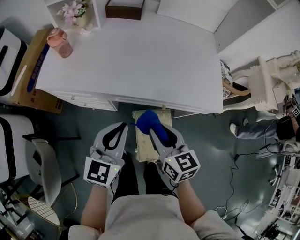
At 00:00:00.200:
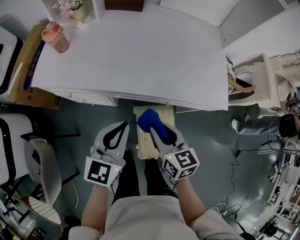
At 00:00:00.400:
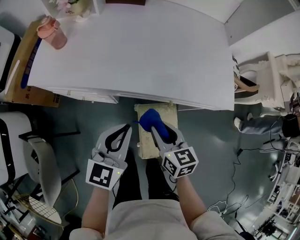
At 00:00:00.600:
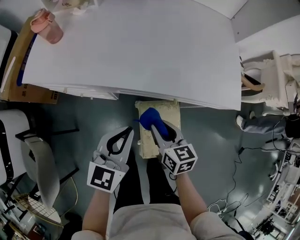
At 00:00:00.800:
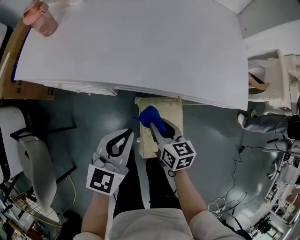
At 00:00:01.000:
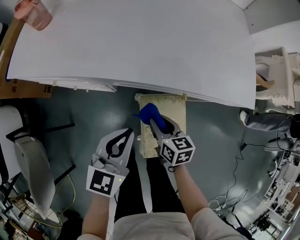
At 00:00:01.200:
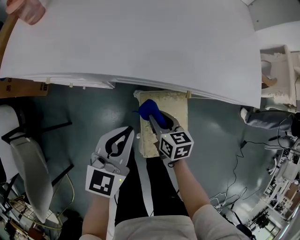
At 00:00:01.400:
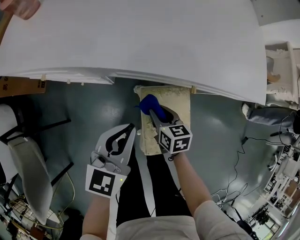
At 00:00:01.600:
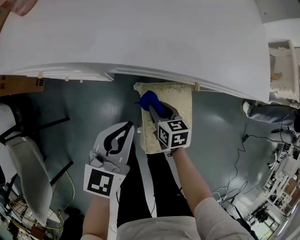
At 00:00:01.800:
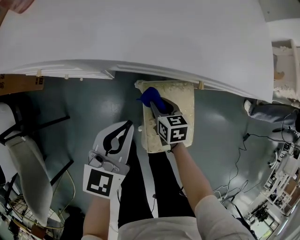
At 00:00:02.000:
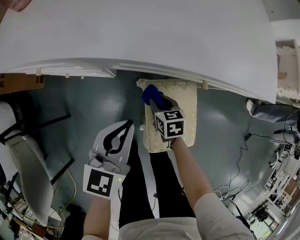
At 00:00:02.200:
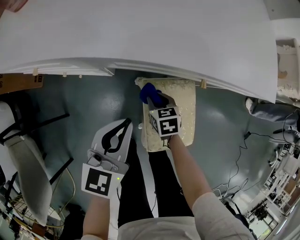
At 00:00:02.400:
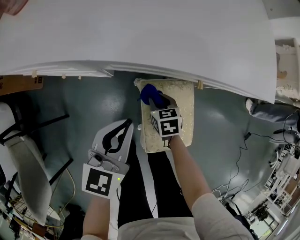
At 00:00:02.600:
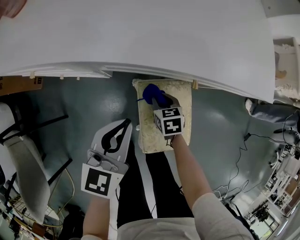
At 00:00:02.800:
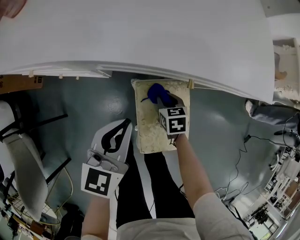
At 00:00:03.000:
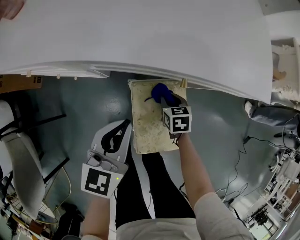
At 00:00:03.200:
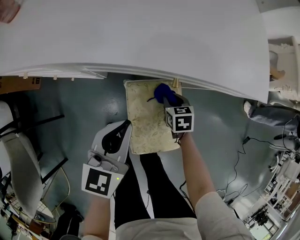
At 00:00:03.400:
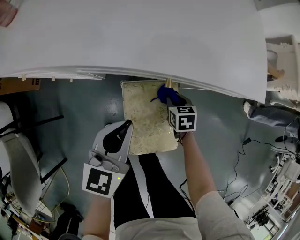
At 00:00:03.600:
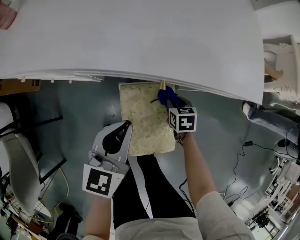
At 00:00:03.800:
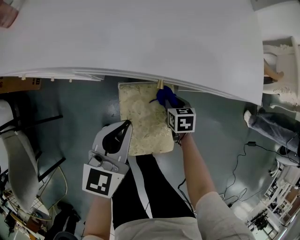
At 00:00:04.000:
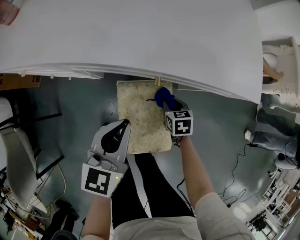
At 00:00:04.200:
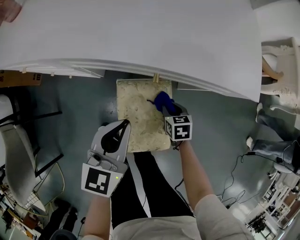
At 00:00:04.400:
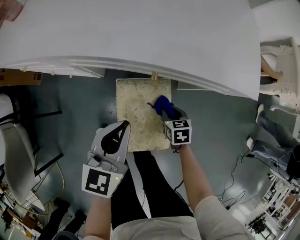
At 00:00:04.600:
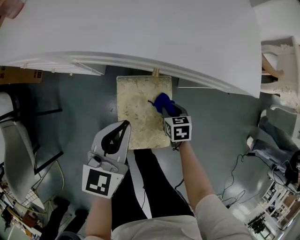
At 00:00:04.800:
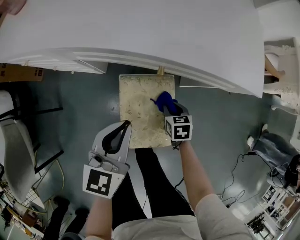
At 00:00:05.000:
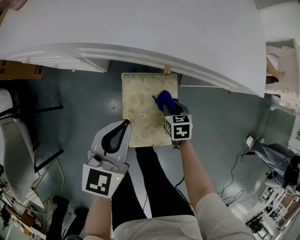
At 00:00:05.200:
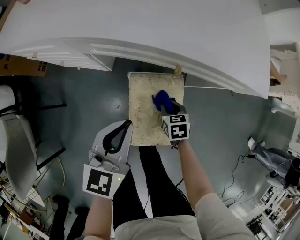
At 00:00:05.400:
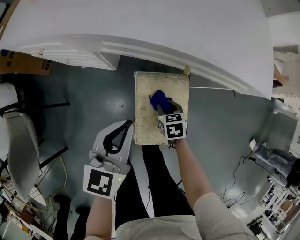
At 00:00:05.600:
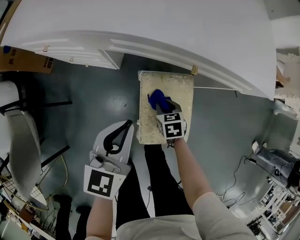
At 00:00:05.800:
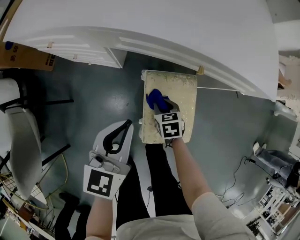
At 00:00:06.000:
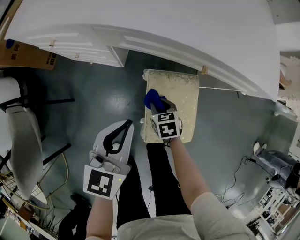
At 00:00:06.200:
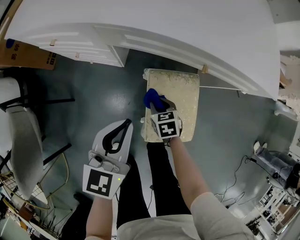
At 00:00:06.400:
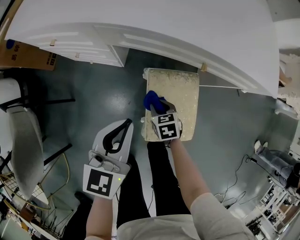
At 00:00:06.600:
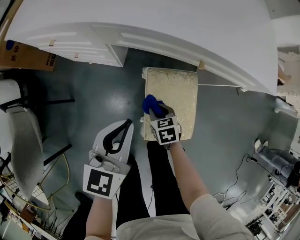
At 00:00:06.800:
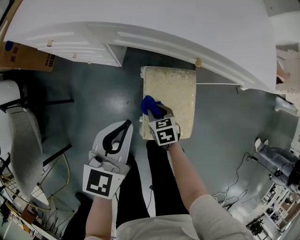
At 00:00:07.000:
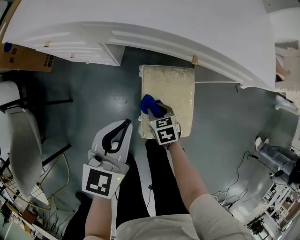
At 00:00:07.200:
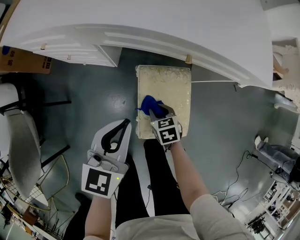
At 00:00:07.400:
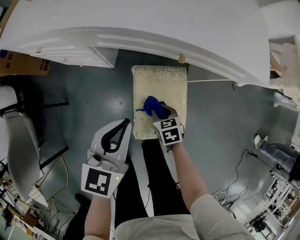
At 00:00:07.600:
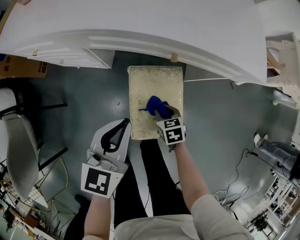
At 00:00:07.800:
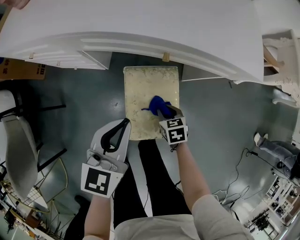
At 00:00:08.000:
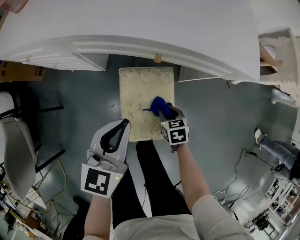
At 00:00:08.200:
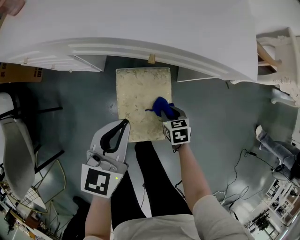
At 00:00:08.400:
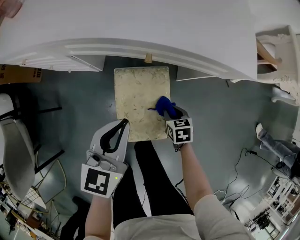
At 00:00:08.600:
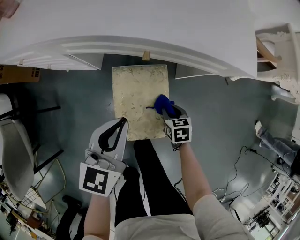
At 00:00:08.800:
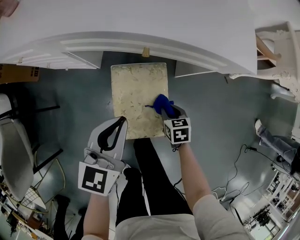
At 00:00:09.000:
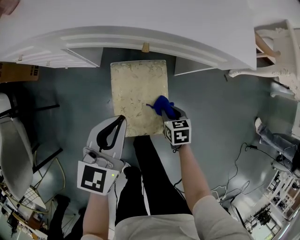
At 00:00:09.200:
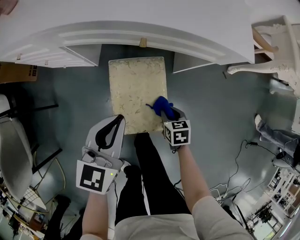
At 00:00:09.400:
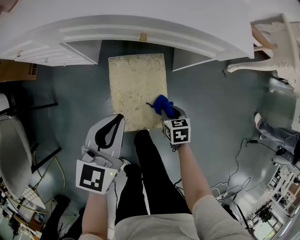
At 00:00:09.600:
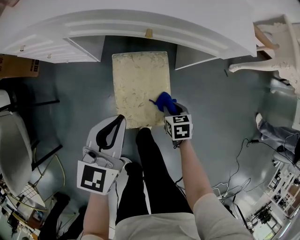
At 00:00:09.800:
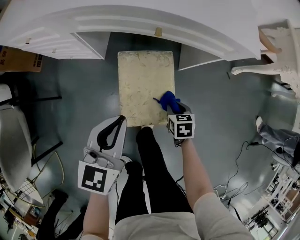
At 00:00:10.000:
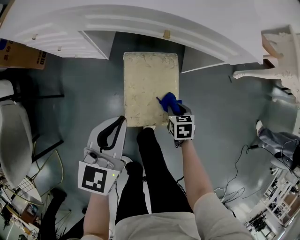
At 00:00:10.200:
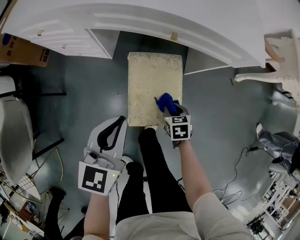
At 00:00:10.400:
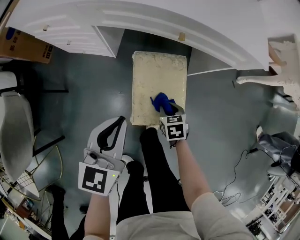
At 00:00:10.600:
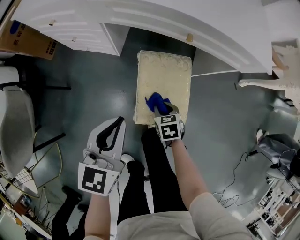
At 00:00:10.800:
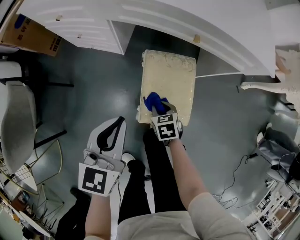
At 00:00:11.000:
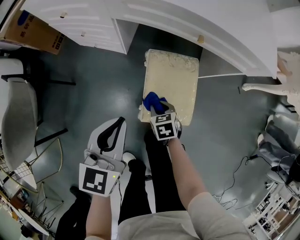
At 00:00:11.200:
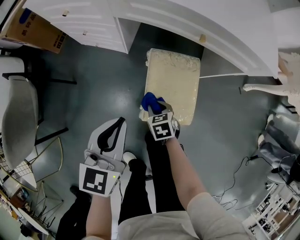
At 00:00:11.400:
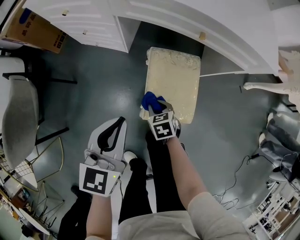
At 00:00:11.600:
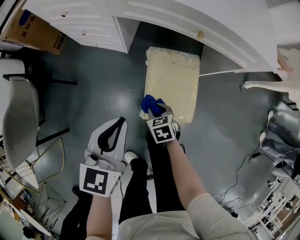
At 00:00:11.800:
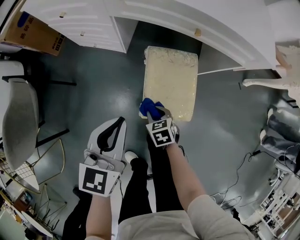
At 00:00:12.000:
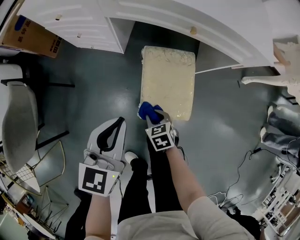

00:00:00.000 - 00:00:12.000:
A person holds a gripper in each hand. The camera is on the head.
00:00:00.000 - 00:00:01.600: The left gripper is displaced downward by some 25 cm; the right gripper travels downward by about 40 cm, and rotates roughly 20 degrees.
00:00:01.600 - 00:00:03.000: The left gripper heads to the right, covering approximately 5 cm, while the right gripper travels to the right and downward by some 10 cm.
00:00:03.000 - 00:00:04.400: The left gripper heads to the right, covering some 10 cm; the right gripper moves to the right and backward, about 10 cm.
00:00:04.400 - 00:00:06.000: The left gripper goes some 15 cm to the left. Meanwhile the right gripper shifts about 20 cm to the left.
00:00:06.000 - 00:00:07.600: The left gripper is displaced to the right by roughly 5 cm; the right gripper heads to the right and backward, covering some 10 cm.
00:00:07.600 - 00:00:09.000: The right gripper is displaced to the right by some 10 cm. The left gripper shifts about 5 cm to the right.
00:00:09.000 - 00:00:10.400: The left gripper is displaced to the left and backward by some 10 cm, while the right gripper is displaced to the left by about 10 cm.
00:00:10.400 - 00:00:12.000: The right gripper goes roughly 15 cm to the left and backward; the left gripper moves approximately 5 cm.

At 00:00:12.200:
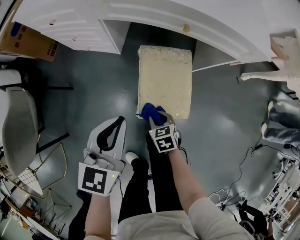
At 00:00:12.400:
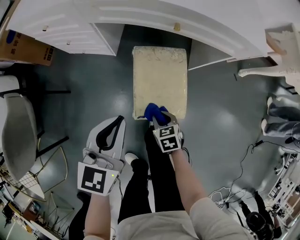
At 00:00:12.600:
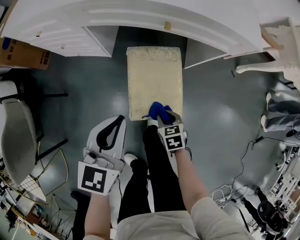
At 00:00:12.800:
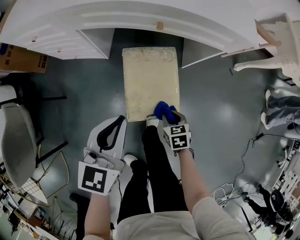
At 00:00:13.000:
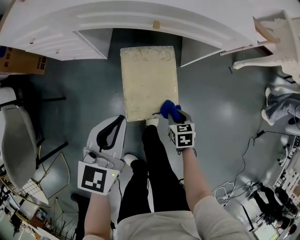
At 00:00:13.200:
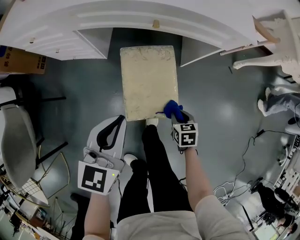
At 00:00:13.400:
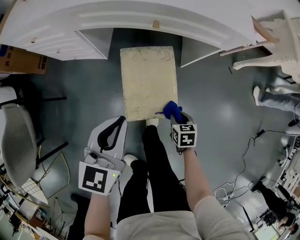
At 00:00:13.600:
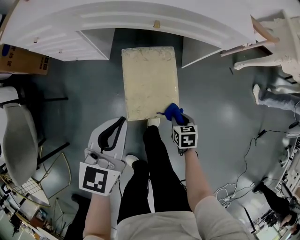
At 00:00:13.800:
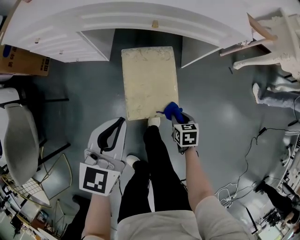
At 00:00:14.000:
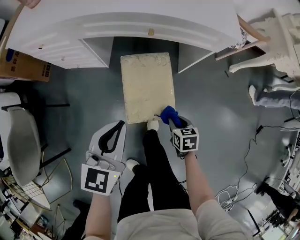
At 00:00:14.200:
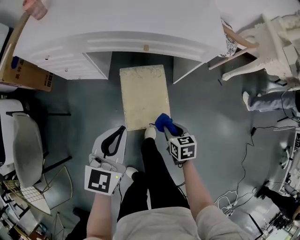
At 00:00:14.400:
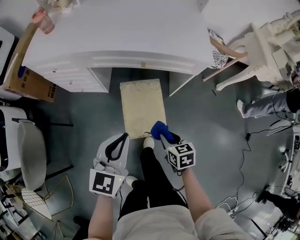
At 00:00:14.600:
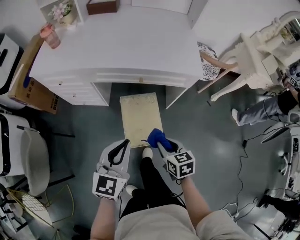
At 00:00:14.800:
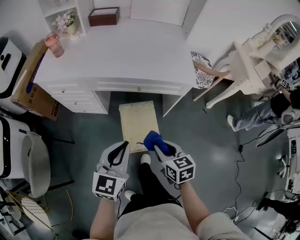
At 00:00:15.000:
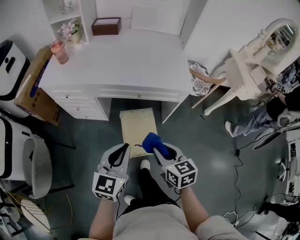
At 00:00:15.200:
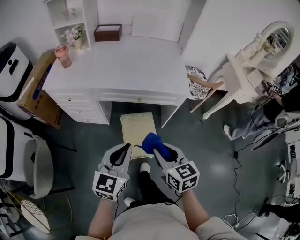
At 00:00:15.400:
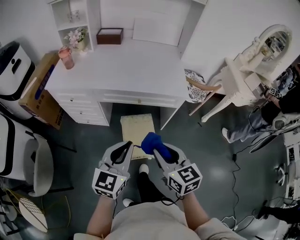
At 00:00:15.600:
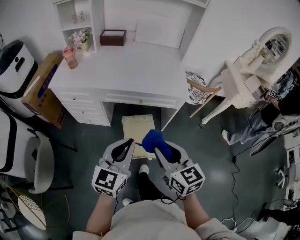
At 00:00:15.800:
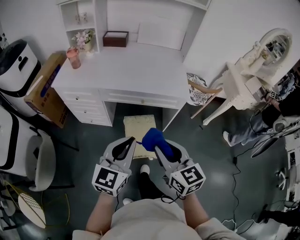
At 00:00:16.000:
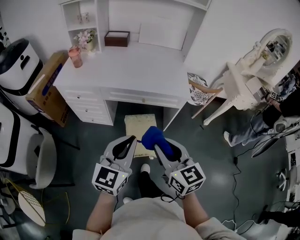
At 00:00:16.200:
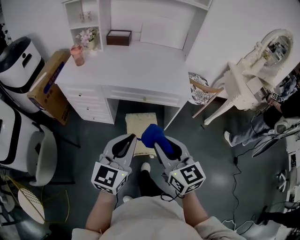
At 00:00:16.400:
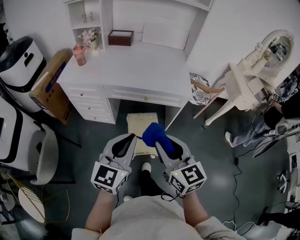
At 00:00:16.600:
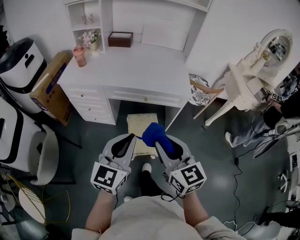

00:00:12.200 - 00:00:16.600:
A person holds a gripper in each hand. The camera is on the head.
00:00:12.200 - 00:00:13.600: The right gripper travels to the right by approximately 15 cm, and changes its angle by approximately 20 degrees. Meanwhile the left gripper travels to the right by roughly 5 cm.
00:00:13.600 - 00:00:15.200: The right gripper goes approximately 50 cm upward, and angles its fingers upward, by approximately 40 degrees. Meanwhile the left gripper travels upward by roughly 25 cm.
00:00:15.200 - 00:00:16.600: Both grippers travel together upward and backward, approximately 15 cm.

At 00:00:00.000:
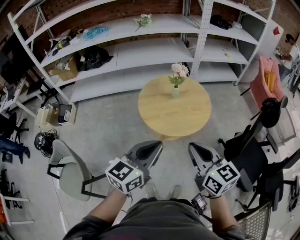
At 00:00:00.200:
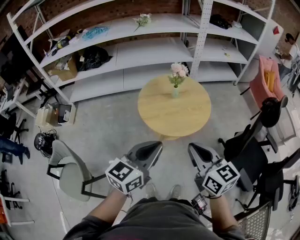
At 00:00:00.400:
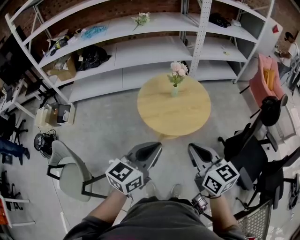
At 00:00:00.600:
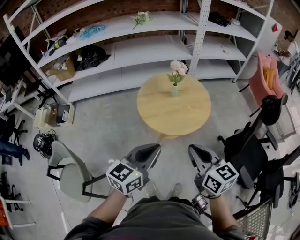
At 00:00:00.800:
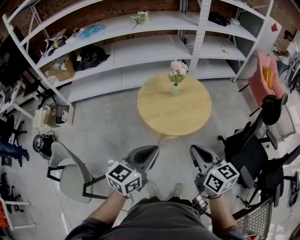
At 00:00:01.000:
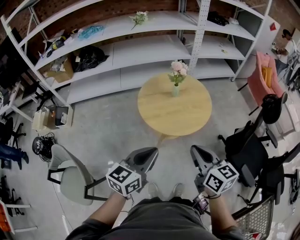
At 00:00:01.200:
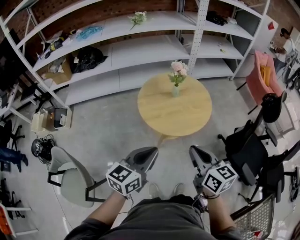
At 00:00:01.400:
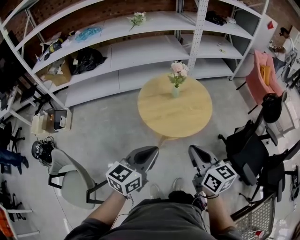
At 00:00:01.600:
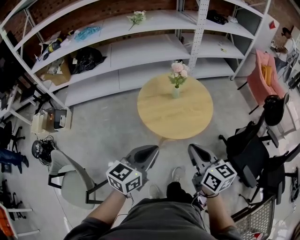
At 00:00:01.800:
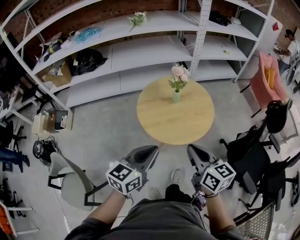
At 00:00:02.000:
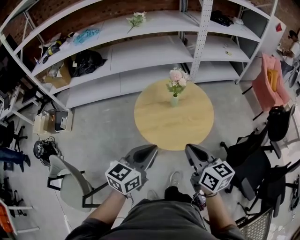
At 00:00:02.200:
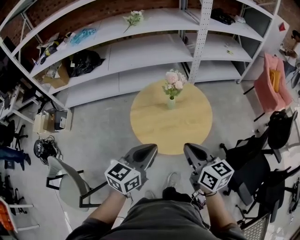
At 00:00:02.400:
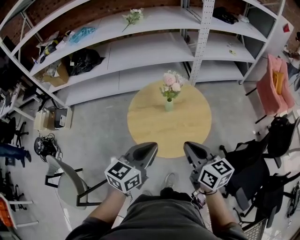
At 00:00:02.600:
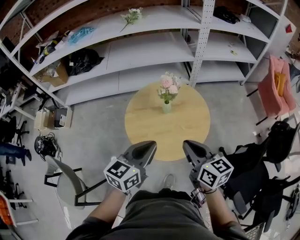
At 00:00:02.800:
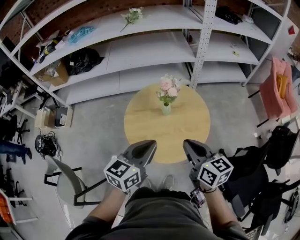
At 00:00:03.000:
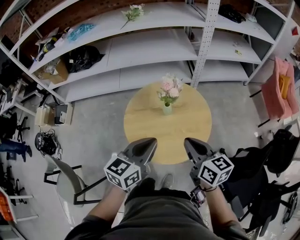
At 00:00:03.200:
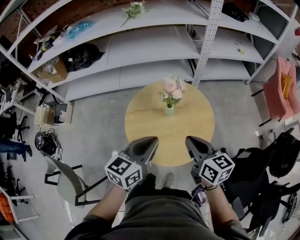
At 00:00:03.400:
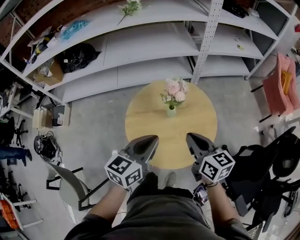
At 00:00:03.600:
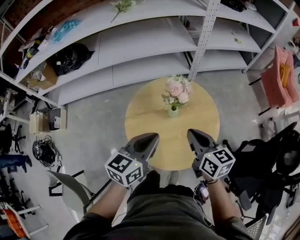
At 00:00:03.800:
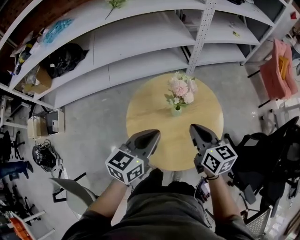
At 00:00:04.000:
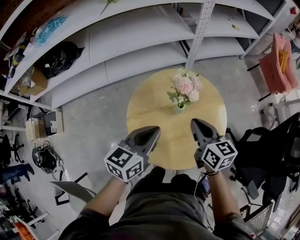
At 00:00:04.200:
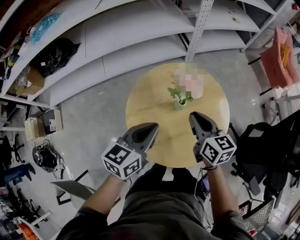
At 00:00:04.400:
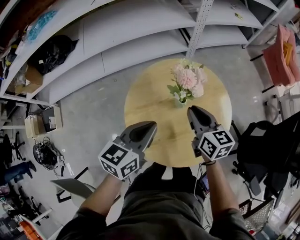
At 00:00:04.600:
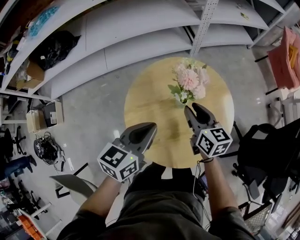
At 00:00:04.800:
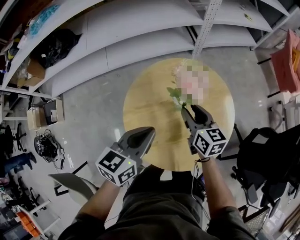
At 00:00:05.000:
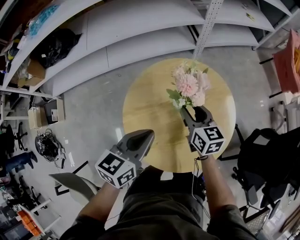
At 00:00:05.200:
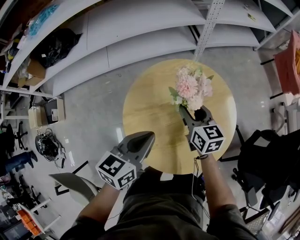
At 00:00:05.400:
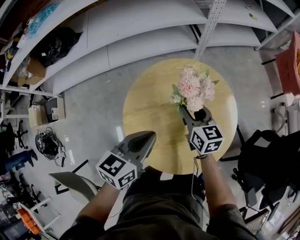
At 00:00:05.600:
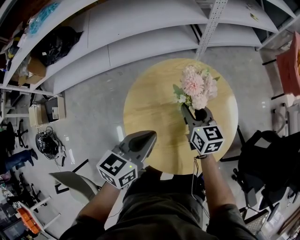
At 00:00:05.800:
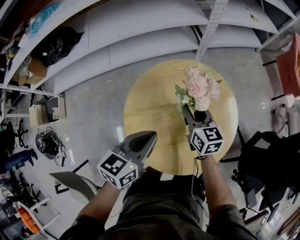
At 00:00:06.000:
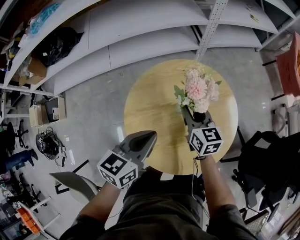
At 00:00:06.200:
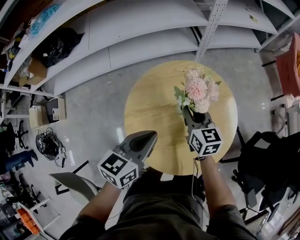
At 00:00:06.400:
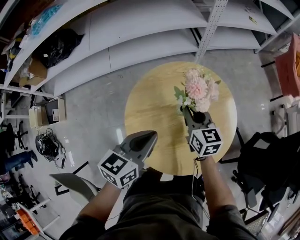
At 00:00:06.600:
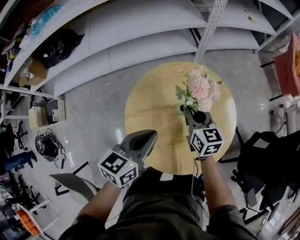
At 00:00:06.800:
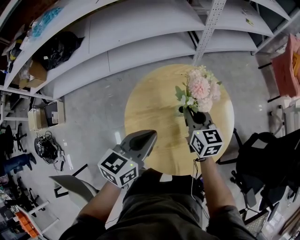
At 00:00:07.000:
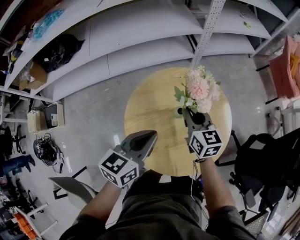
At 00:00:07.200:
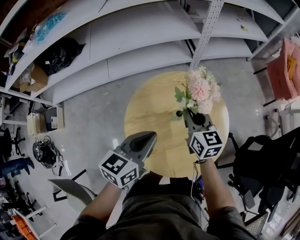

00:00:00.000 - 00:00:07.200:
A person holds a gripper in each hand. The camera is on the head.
00:00:00.000 - 00:00:01.400: The right gripper shifts by roughly 5 cm; the left gripper travels to the left and downward by approximately 10 cm.
00:00:01.400 - 00:00:02.800: Both grippers move forward and to the right, about 25 cm.
00:00:02.800 - 00:00:04.400: Both grippers travel together forward, downward and to the left, about 25 cm.
00:00:04.400 - 00:00:05.800: The right gripper moves downward and forward, some 10 cm, and opens up.
00:00:05.800 - 00:00:07.200: The right gripper travels upward by approximately 5 cm.
